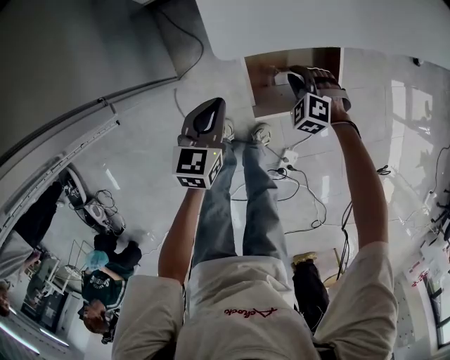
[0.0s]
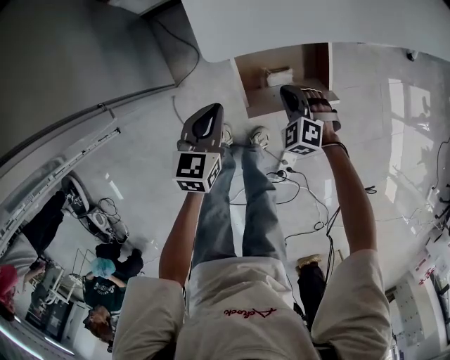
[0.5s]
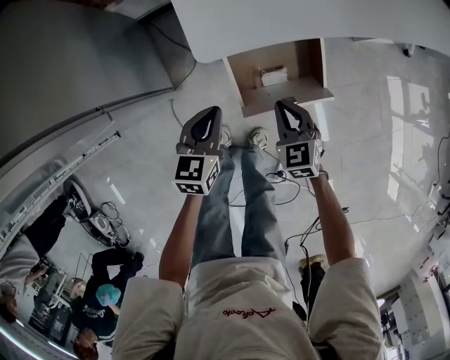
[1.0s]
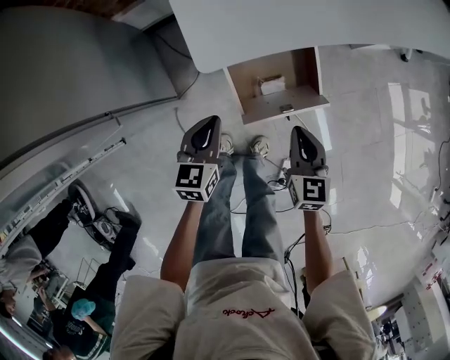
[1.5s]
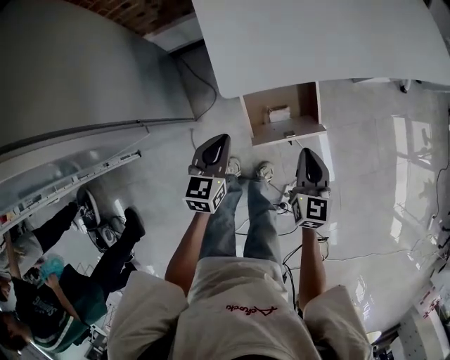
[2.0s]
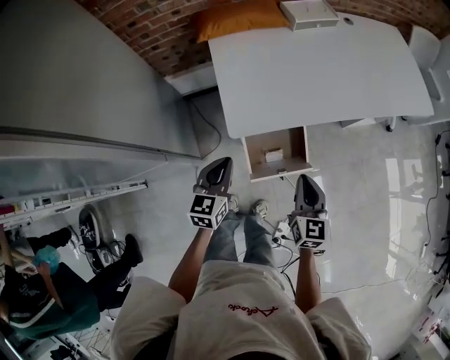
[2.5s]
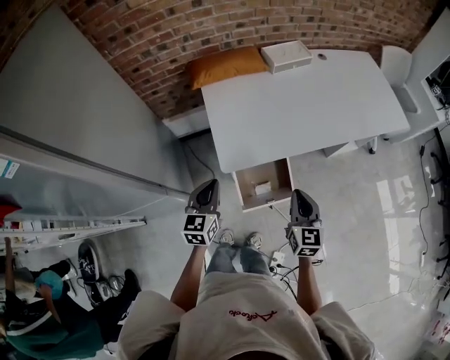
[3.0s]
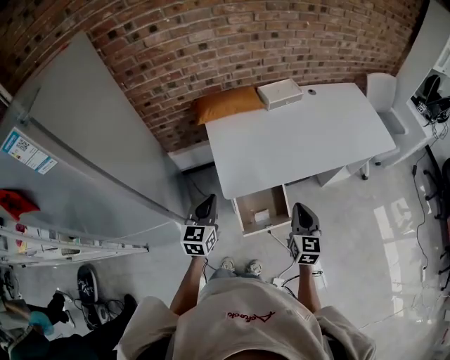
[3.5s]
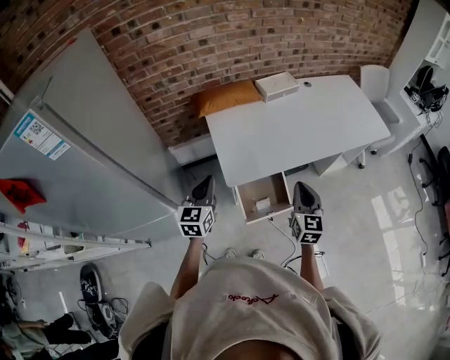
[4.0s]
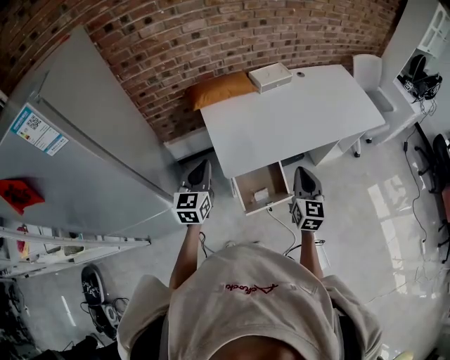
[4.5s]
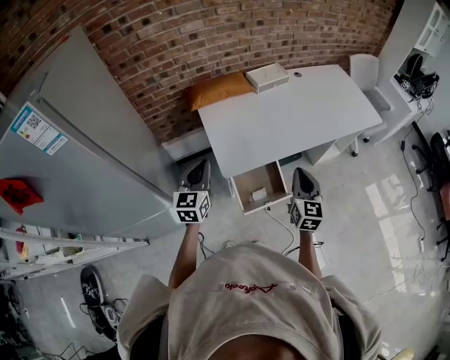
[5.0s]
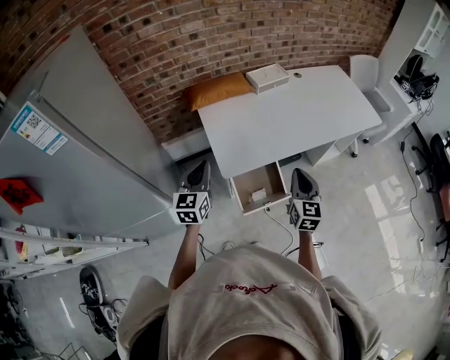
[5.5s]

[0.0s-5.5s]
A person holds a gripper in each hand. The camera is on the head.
0.0s to 2.0s: The right gripper goes some 25 cm upward and backward, and rotates around the line of its fingers by some 70 degrees, clockwise from behind. The left gripper moves upward, roughly 10 cm.
2.0s to 3.5s: The two grippers go about 20 cm upward.
3.5s to 5.5s: Both grippers move upward, some 5 cm.

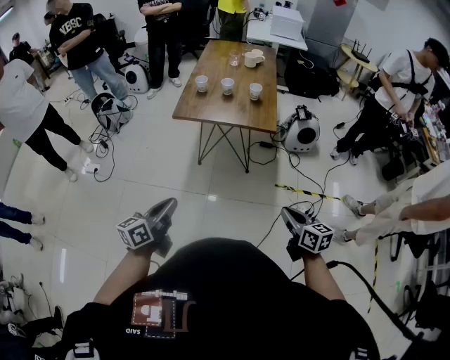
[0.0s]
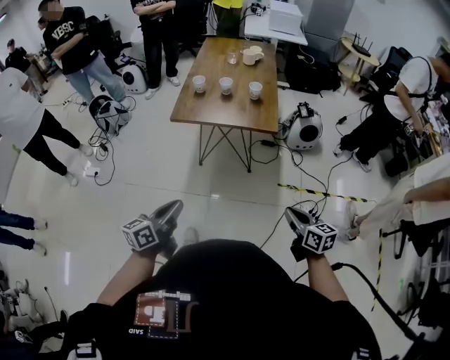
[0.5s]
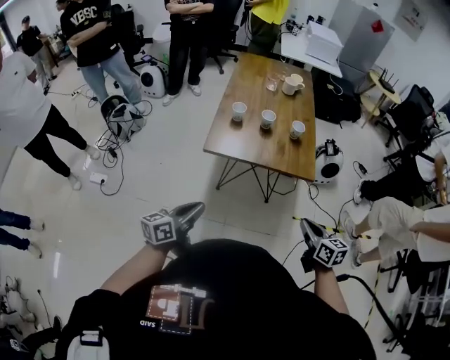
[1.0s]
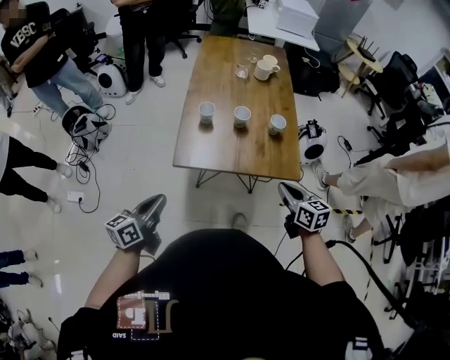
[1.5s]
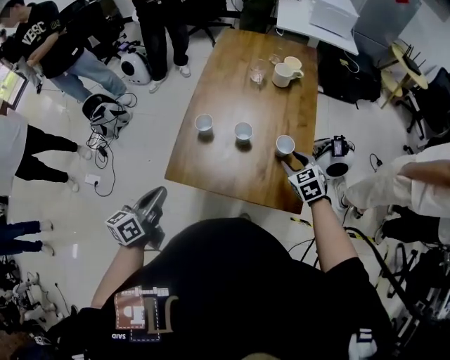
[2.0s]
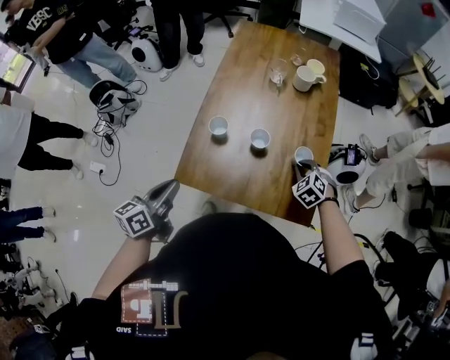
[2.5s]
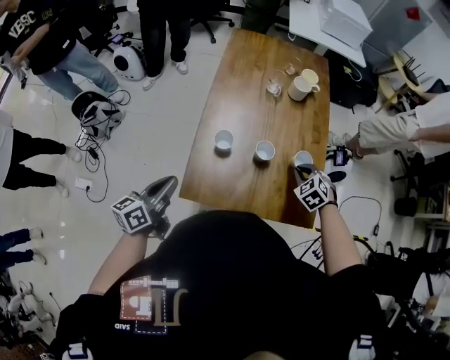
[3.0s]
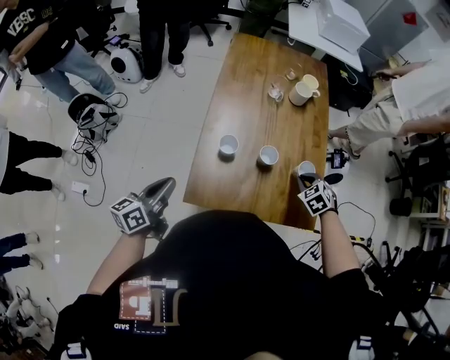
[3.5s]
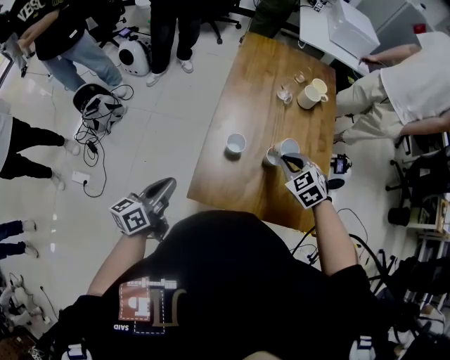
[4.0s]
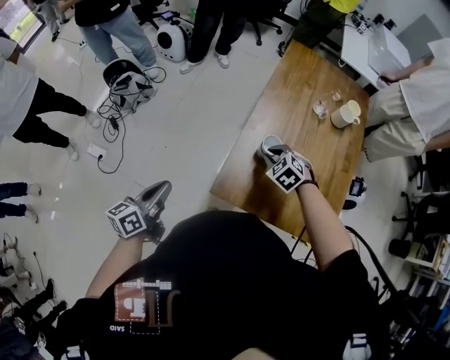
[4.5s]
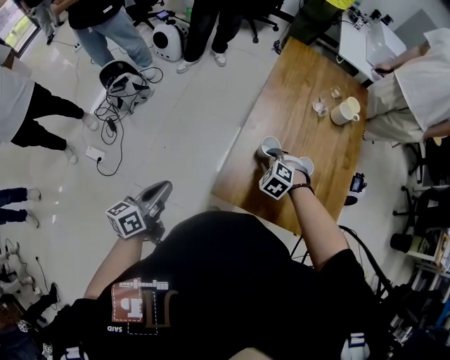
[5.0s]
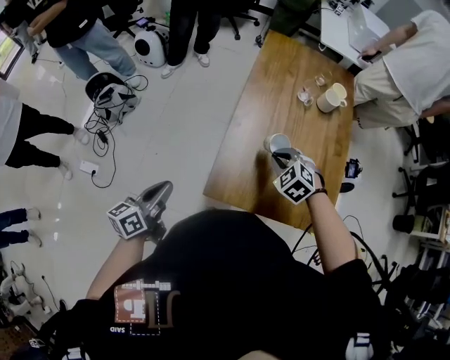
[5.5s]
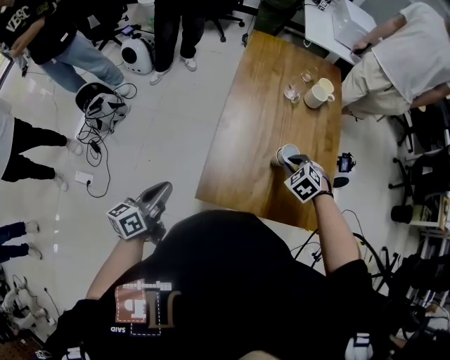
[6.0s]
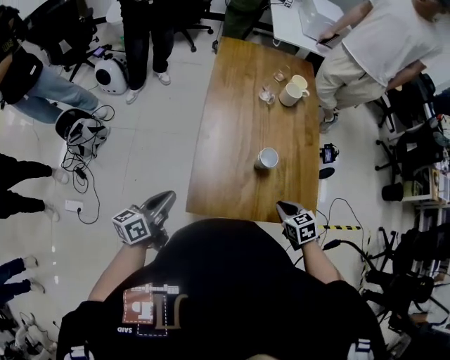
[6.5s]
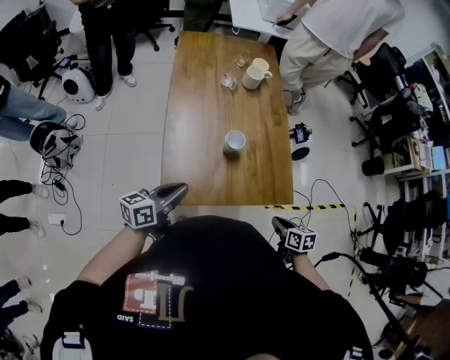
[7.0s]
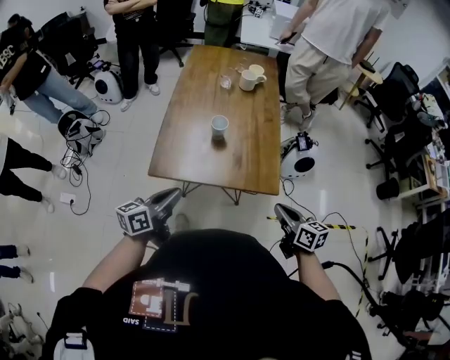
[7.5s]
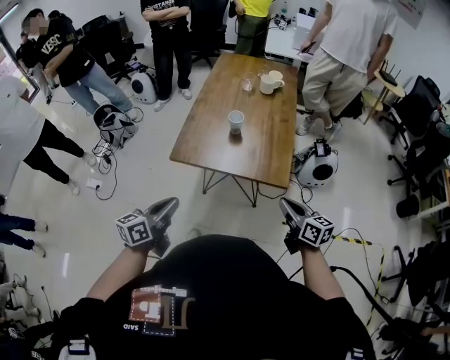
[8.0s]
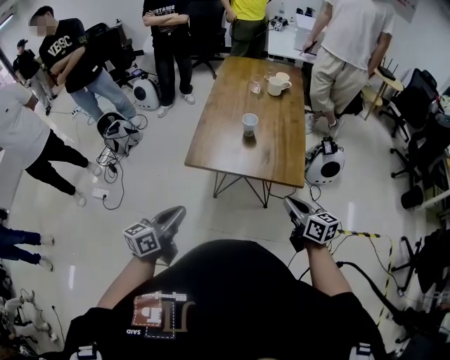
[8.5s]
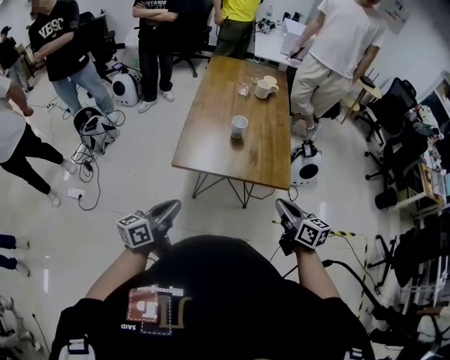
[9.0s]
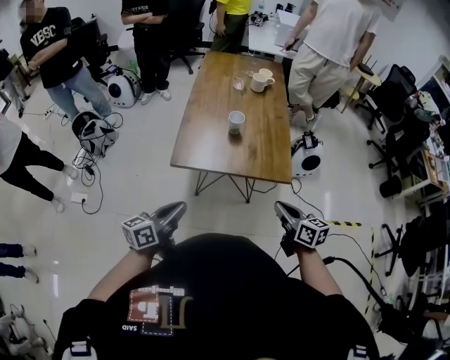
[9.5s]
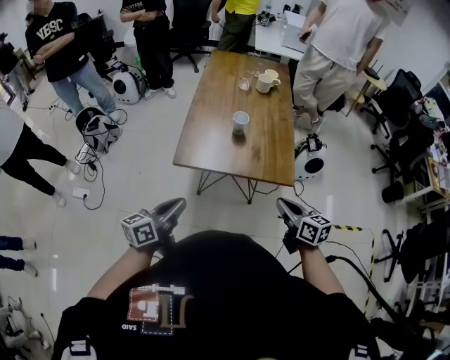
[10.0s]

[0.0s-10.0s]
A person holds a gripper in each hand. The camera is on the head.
0.0s to 2.0s: The pair of grippers is taken forward, some 50 cm. The right gripper rotates around the line of its fingers by about 40 degrees, counterclockwise from behind, and opens its fingers.
2.0s to 4.0s: The left gripper is displaced to the left and forward by some 15 cm, while the right gripper goes about 20 cm to the left, and closes up.
4.0s to 6.0s: The right gripper moves downward, about 5 cm, goes to the left and returns, some 15 cm each way, and opens and closes again.
6.0s to 8.0s: The left gripper heads to the right and backward, covering roughly 35 cm. The right gripper travels backward and to the right by approximately 40 cm, and angles its fingers upward, by roughly 50 degrees.
8.0s to 10.0s: Both grippers travel together to the left, roughly 5 cm.

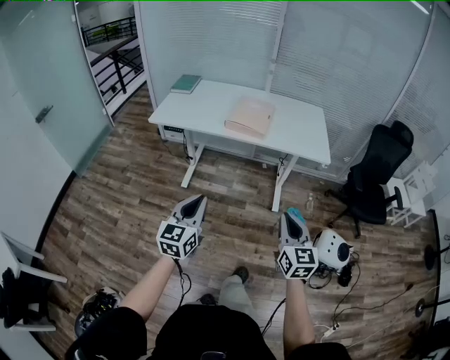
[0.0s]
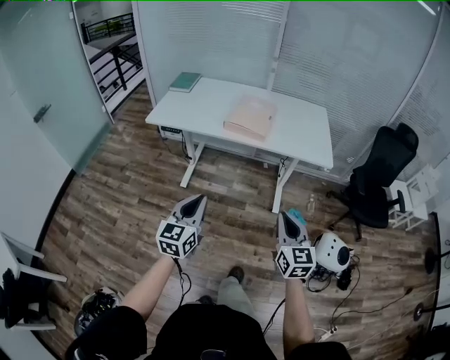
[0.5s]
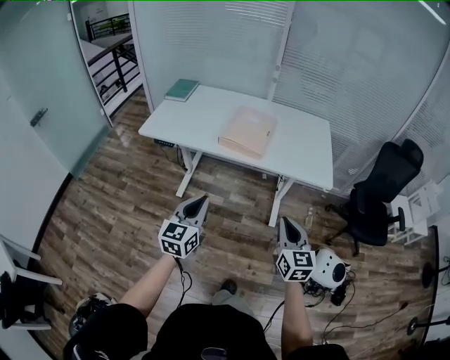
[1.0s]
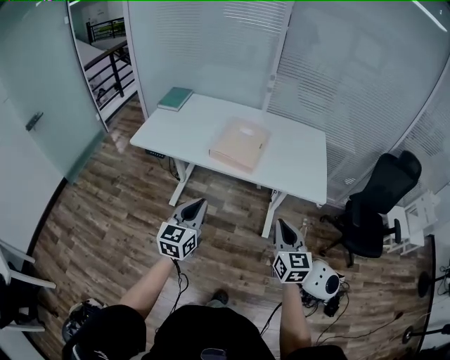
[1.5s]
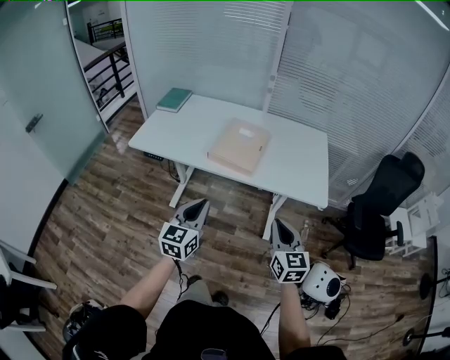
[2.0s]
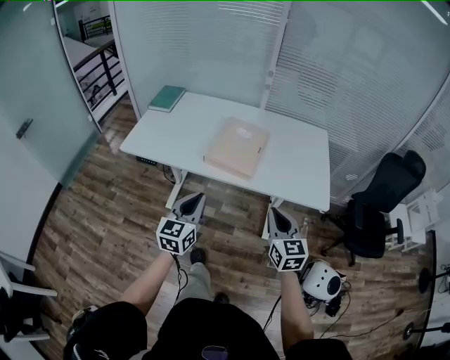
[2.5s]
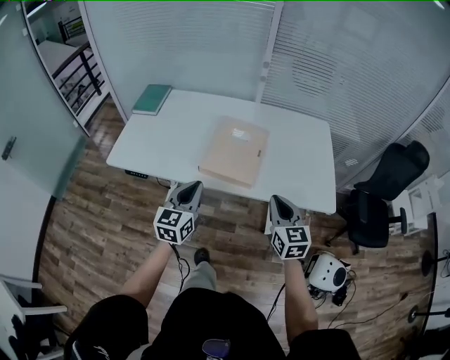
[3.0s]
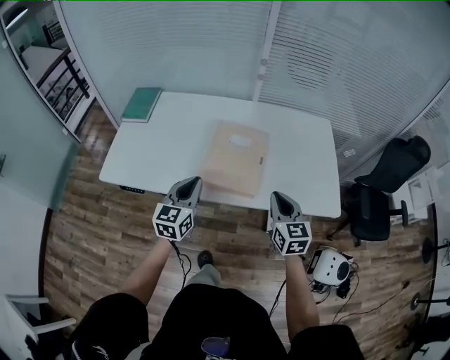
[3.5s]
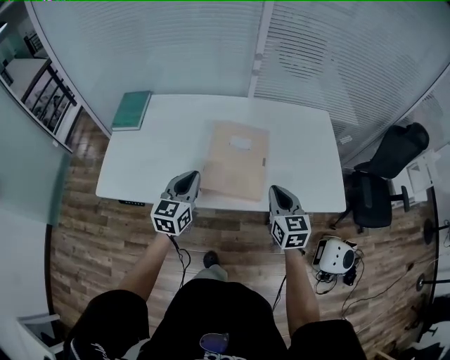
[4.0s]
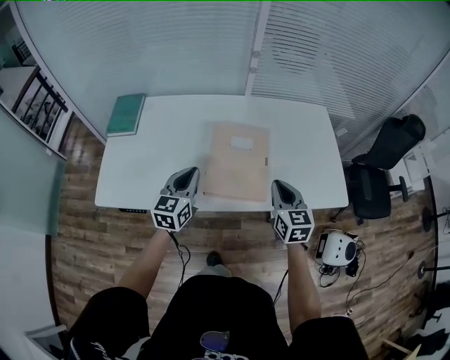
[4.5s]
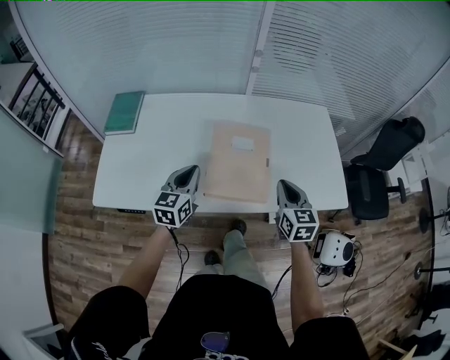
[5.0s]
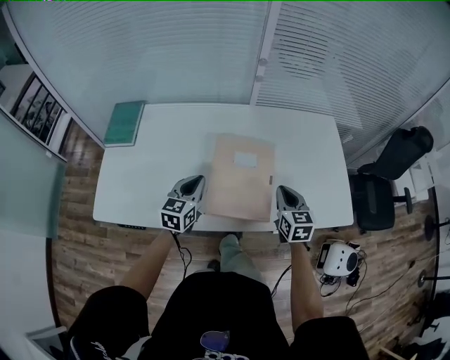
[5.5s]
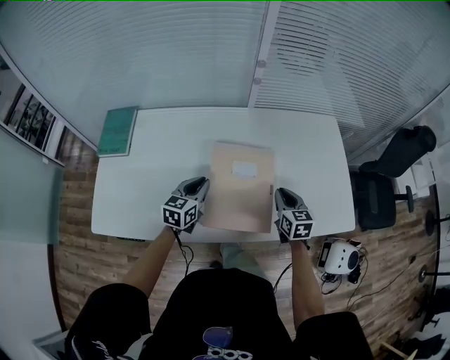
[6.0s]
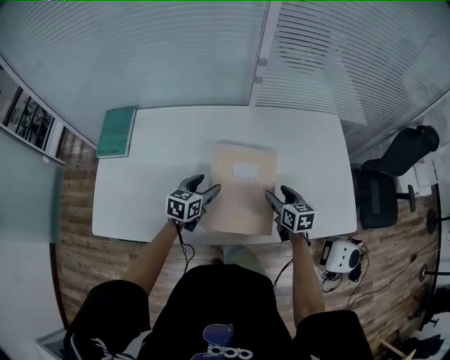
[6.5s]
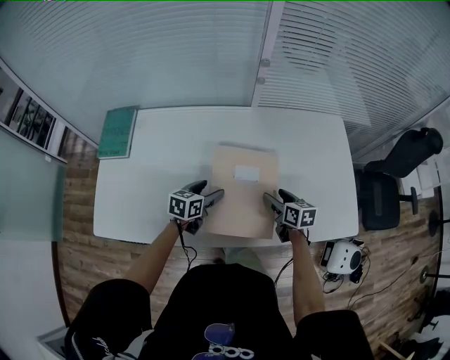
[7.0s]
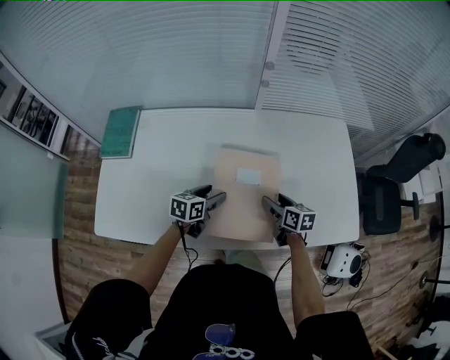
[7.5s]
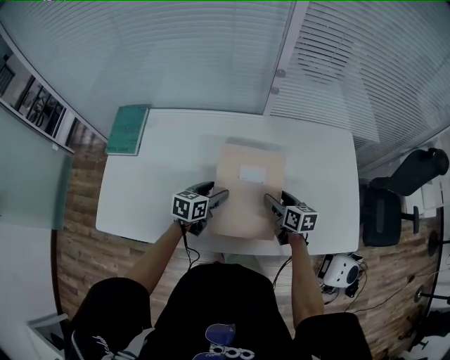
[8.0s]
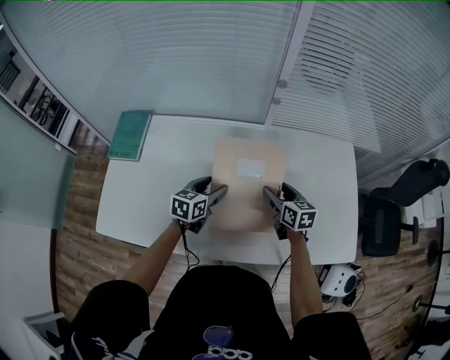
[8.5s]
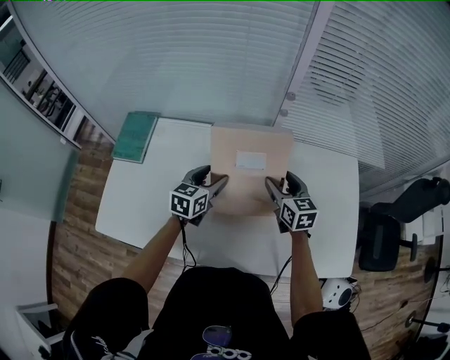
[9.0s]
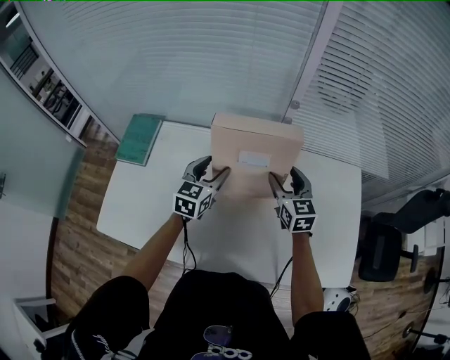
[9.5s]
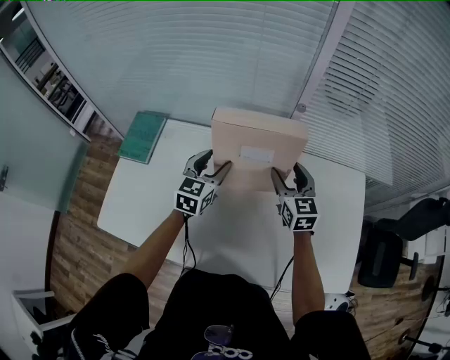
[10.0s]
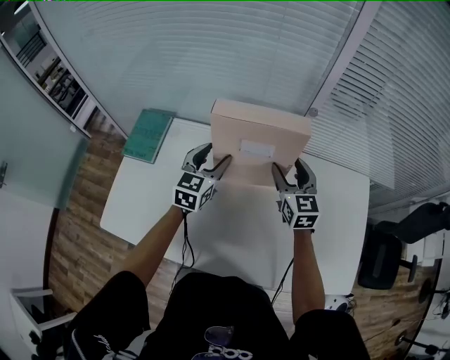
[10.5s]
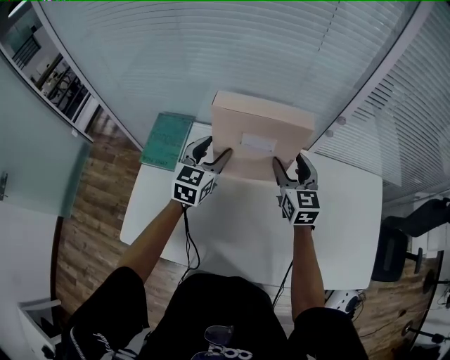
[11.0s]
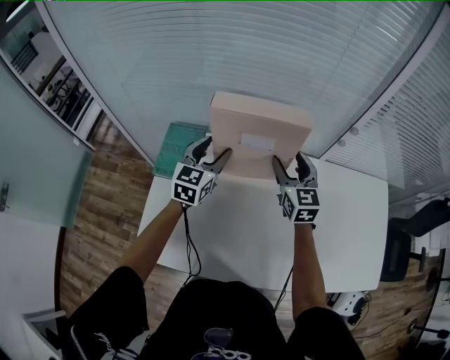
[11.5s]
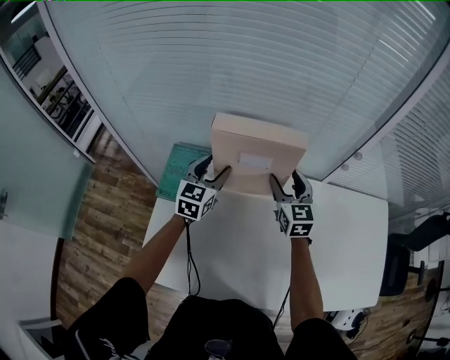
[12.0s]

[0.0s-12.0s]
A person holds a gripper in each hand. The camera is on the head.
0.0s to 2.0s: Both grippers move forward, roughly 25 cm.
2.0s to 4.0s: The two grippers go some 35 cm forward.
4.0s to 6.0s: The grippers both shift forward and downward by approximately 20 cm.
6.0s to 8.0s: The right gripper moves roughly 5 cm, rotates about 20 degrees, and opens. Meanwhile the left gripper opens.
8.0s to 10.0s: The right gripper shifts about 25 cm forward and upward, and rotates roughly 40 degrees. Meanwhile the left gripper travels upward and forward by approximately 20 cm, and turns by some 40 degrees.
10.0s to 12.0s: The two grippers go some 25 cm to the left.
